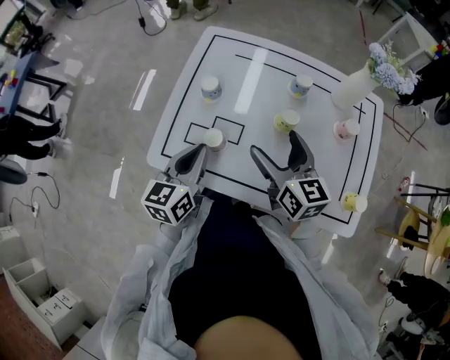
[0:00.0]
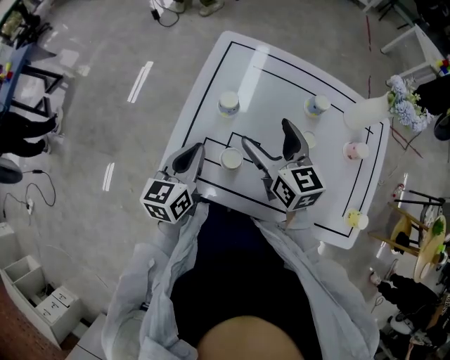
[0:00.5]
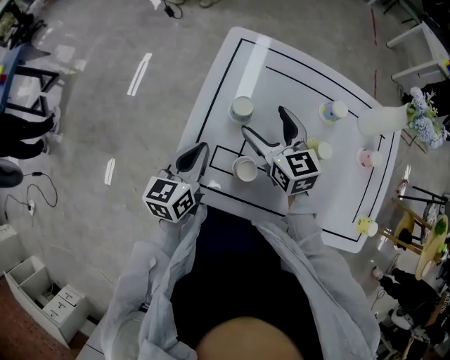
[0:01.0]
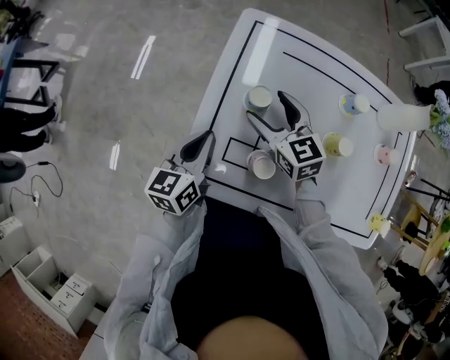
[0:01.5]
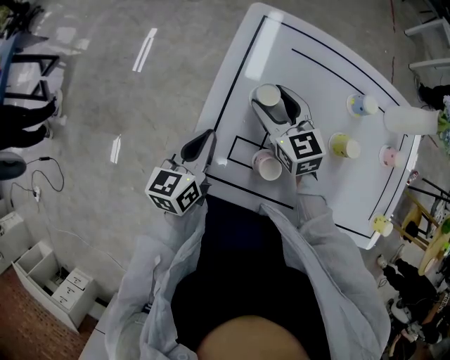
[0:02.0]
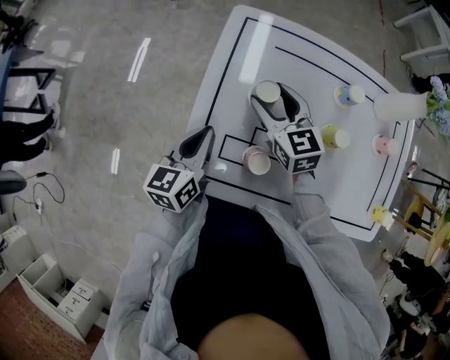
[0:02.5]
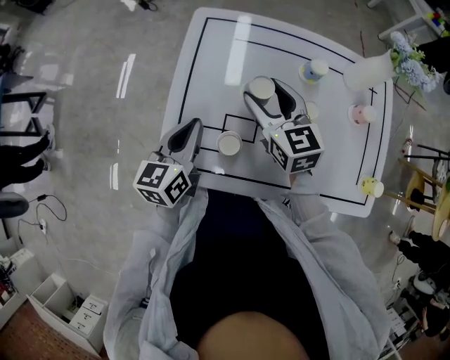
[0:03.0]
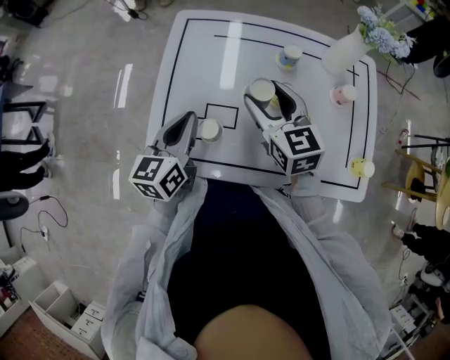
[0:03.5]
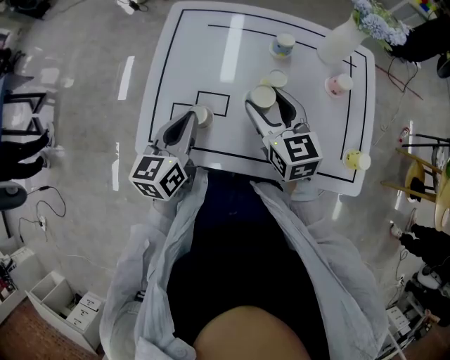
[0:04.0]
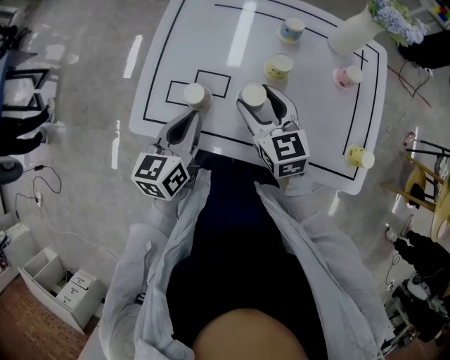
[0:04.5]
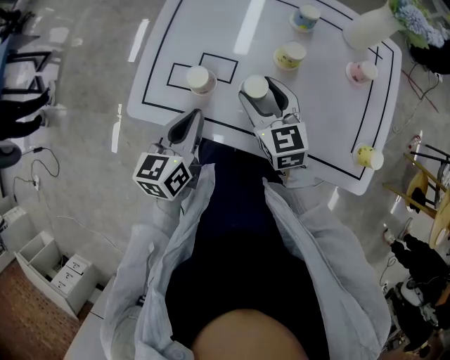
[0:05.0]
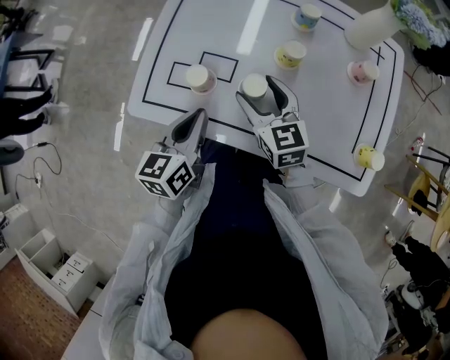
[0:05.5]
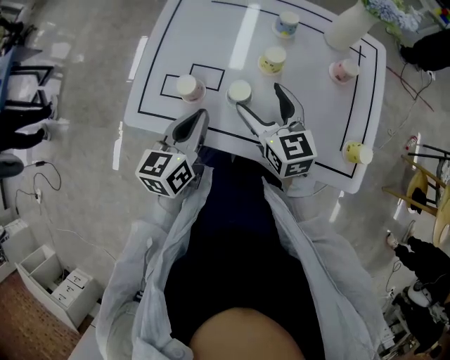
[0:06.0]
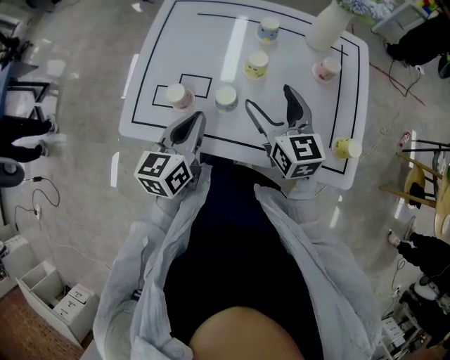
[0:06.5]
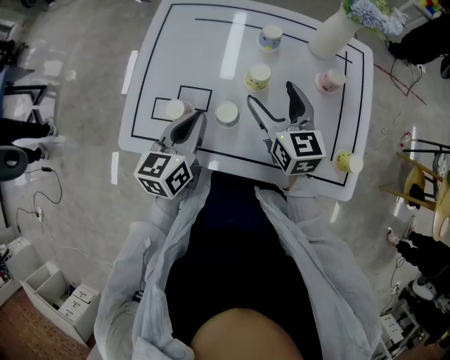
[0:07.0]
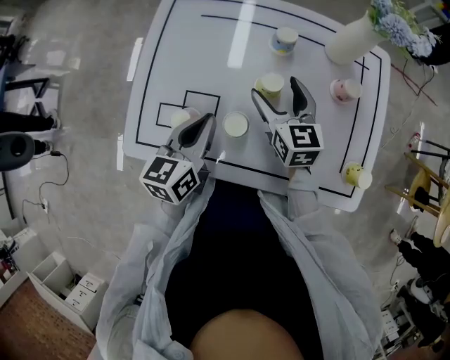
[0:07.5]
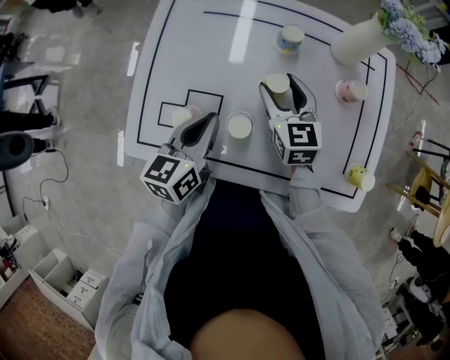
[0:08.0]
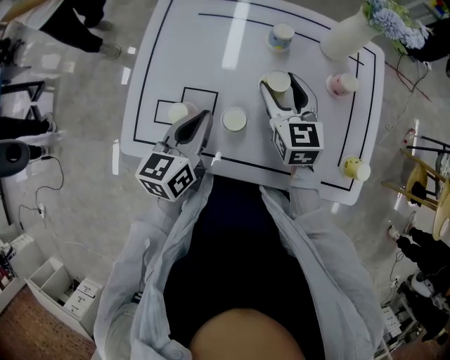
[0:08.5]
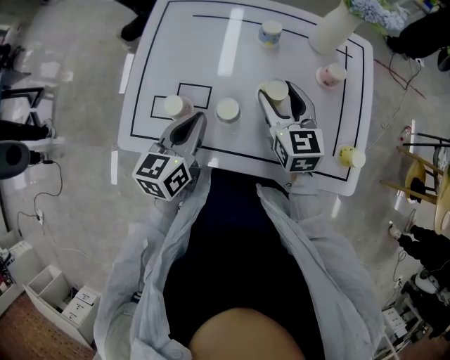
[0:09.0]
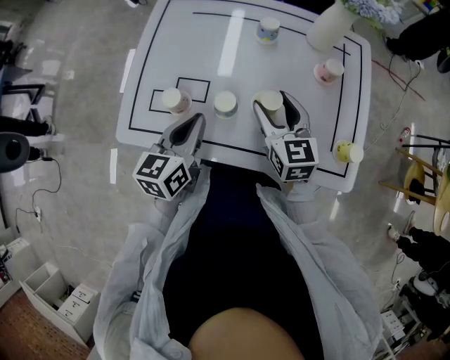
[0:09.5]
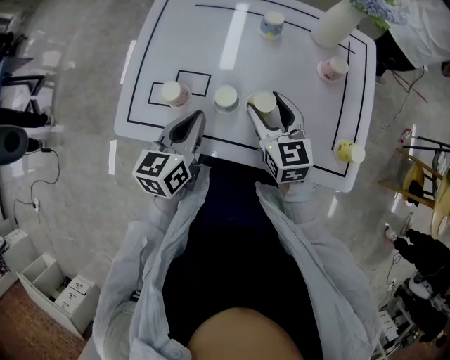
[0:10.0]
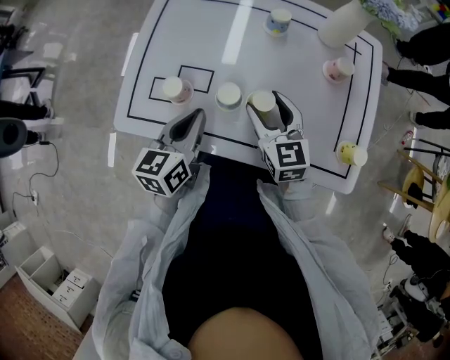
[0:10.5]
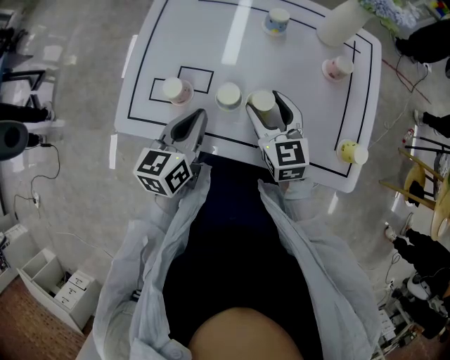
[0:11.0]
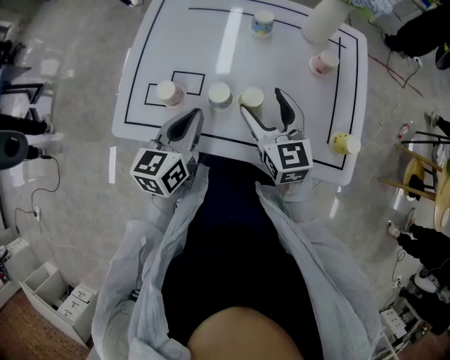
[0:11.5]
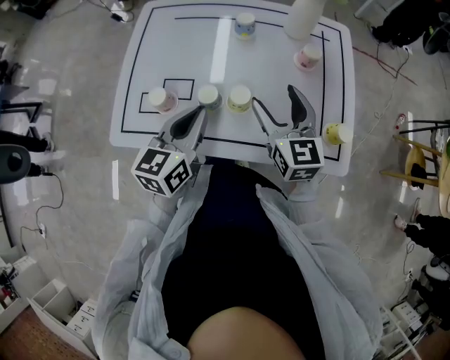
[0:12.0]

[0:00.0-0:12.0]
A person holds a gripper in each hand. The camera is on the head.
0:00.0 to 0:02.0: The right gripper goes some 30 cm forward, to the left and downward, swivels some 20 degrees, and closes up. Meanwhile the left gripper travels to the left, forward and downward by roughly 20 cm.
0:02.0 to 0:04.0: The left gripper shifts some 20 cm to the right, upward and backward. The right gripper heads to the right, backward and upward, covering approximately 25 cm.
0:04.0 to 0:06.0: Both grippers travel together backward, roughly 5 cm.
0:06.0 to 0:08.0: The two grippers go about 10 cm forward.
0:08.0 to 0:10.0: The left gripper is displaced backward by roughly 5 cm. Meanwhile the right gripper heads backward, covering approximately 10 cm.
0:10.0 to 0:12.0: The right gripper shifts roughly 10 cm to the right and upward, while the left gripper moves approximately 5 cm.

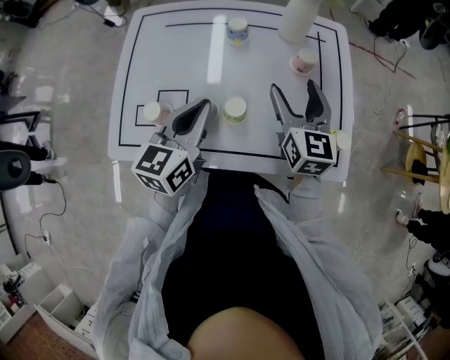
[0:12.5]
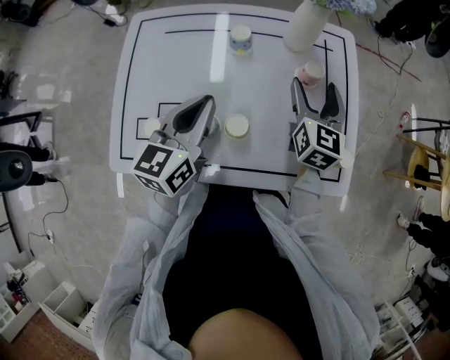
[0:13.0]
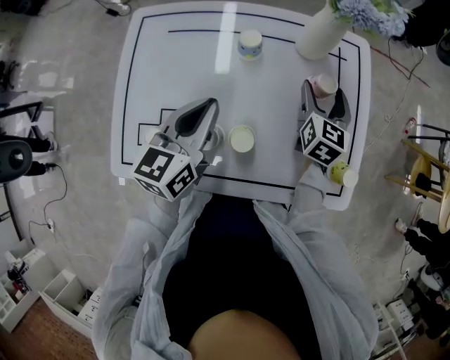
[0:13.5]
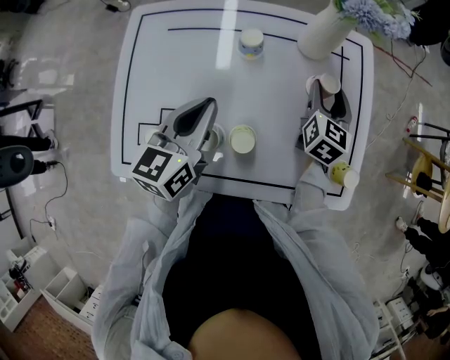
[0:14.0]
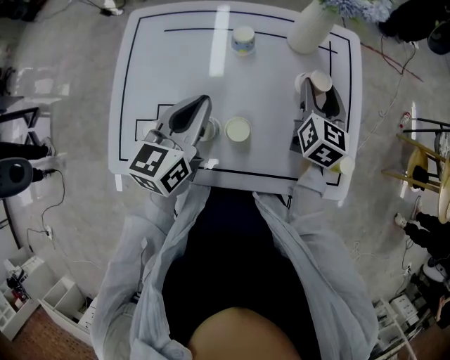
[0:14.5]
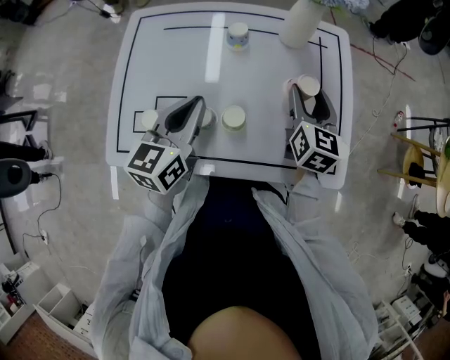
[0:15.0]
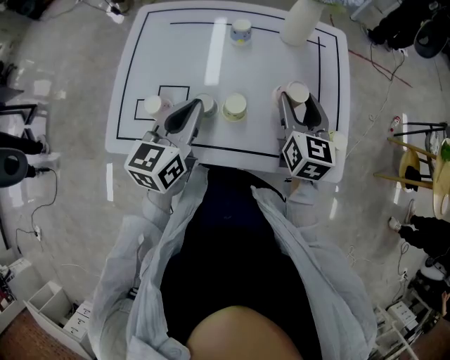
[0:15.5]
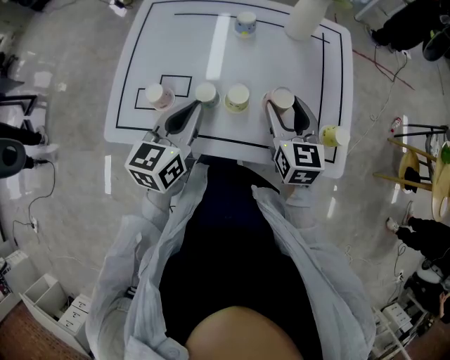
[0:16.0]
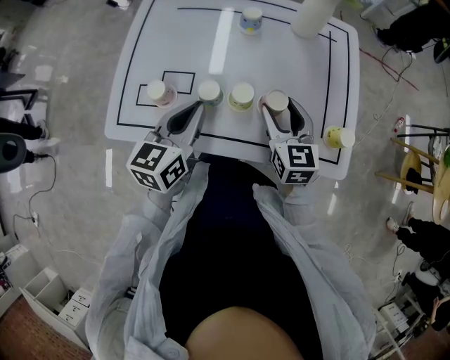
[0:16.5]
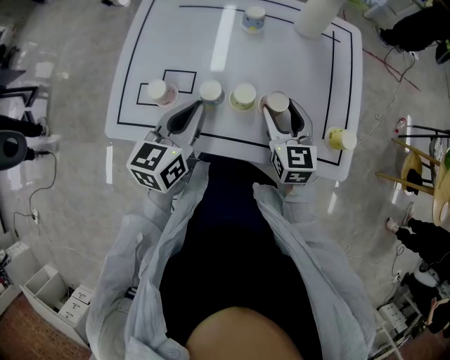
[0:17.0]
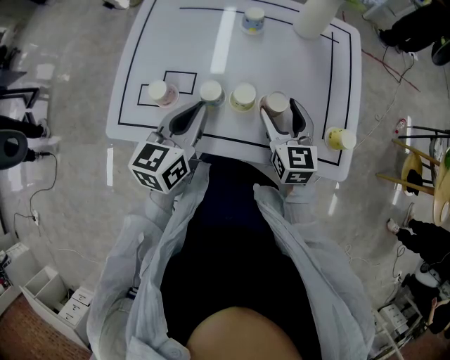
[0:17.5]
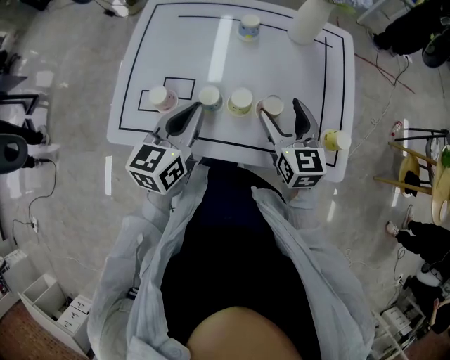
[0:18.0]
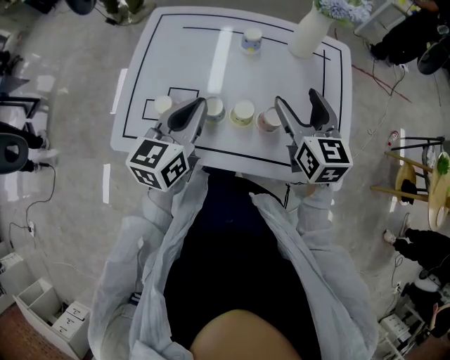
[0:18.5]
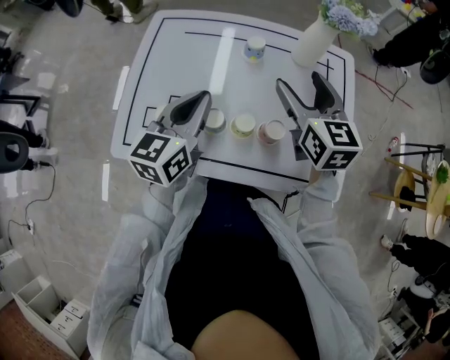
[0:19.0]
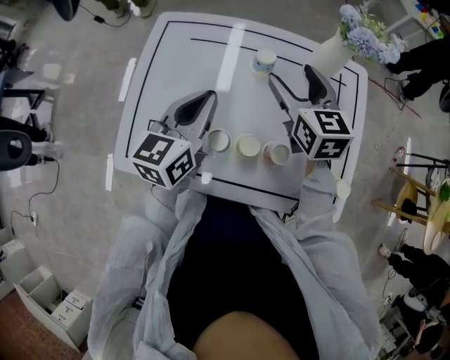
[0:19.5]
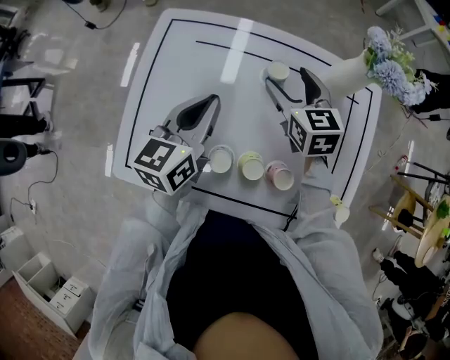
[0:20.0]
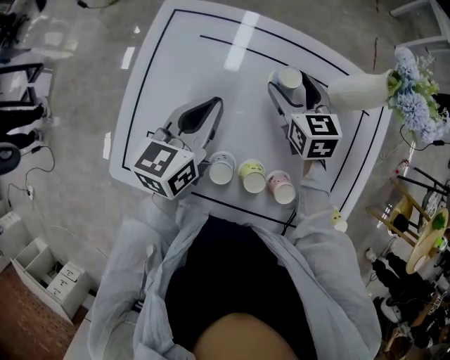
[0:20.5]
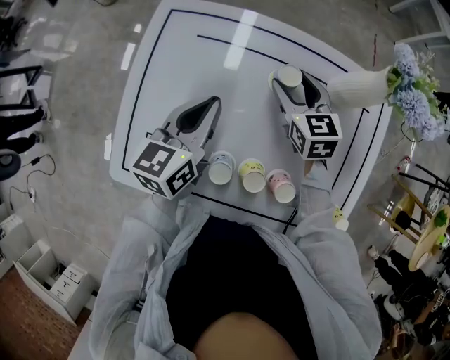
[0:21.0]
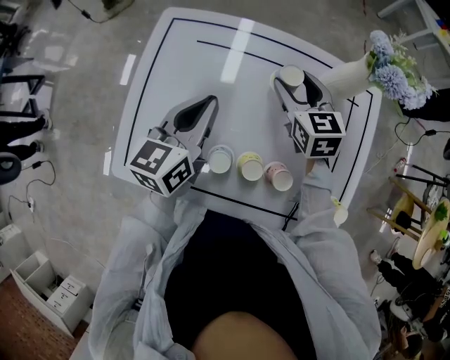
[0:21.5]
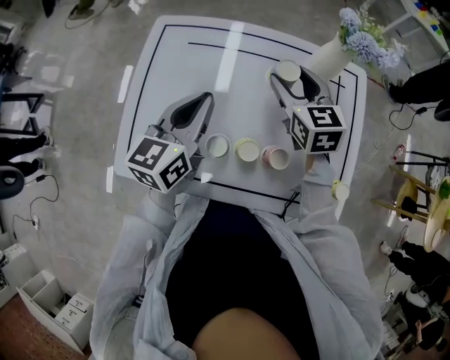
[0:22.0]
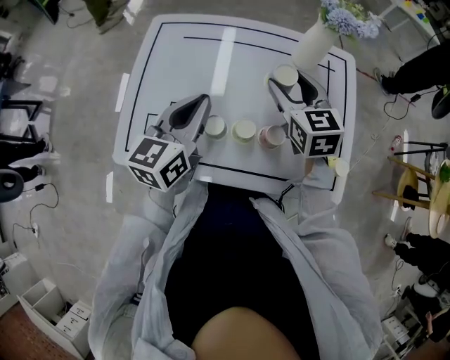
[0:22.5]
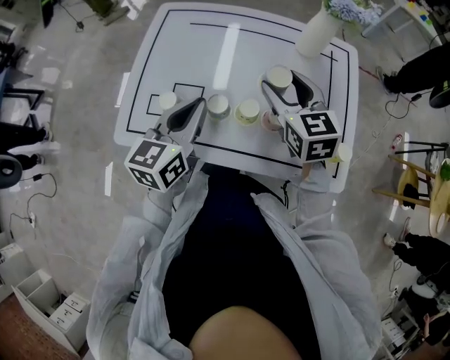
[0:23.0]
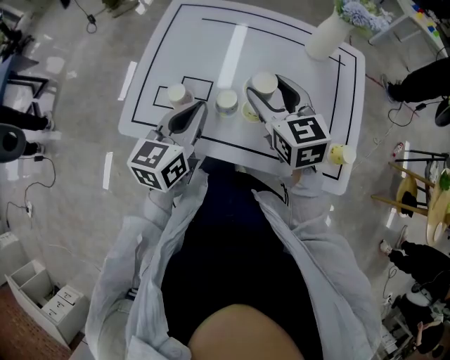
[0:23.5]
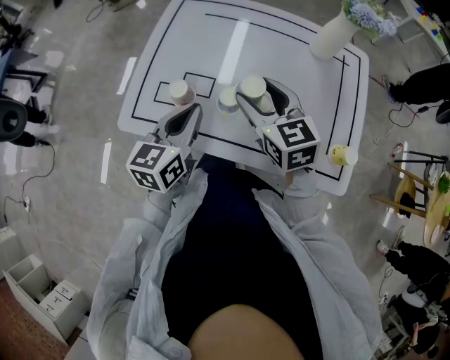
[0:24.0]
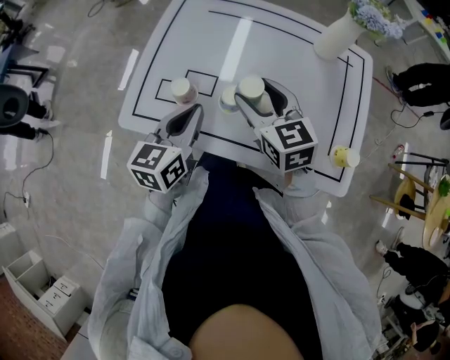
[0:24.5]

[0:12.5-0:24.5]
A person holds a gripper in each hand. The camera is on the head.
0:12.5 to 0:14.5: The right gripper moves forward, some 10 cm. The left gripper moves forward, some 5 cm.
0:14.5 to 0:16.5: The left gripper travels backward by approximately 10 cm; the right gripper shifts some 20 cm backward and to the left, and rotates roughly 30 degrees.
0:16.5 to 0:18.5: The right gripper moves upward, roughly 10 cm, while the left gripper goes roughly 5 cm upward.
0:18.5 to 0:20.5: The left gripper goes about 20 cm forward; the right gripper travels forward, downward and to the left by some 30 cm.
0:20.5 to 0:22.5: The two grippers go roughly 15 cm backward and upward.
0:22.5 to 0:24.5: The right gripper is displaced to the left and backward by about 15 cm. Meanwhile the left gripper travels backward, downward and to the left by approximately 10 cm.

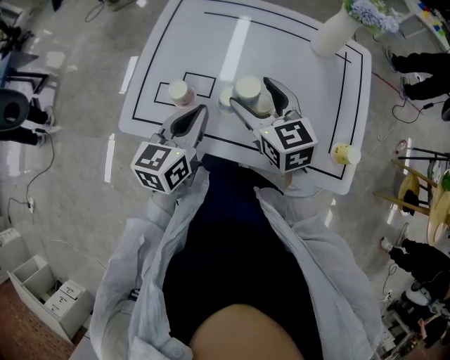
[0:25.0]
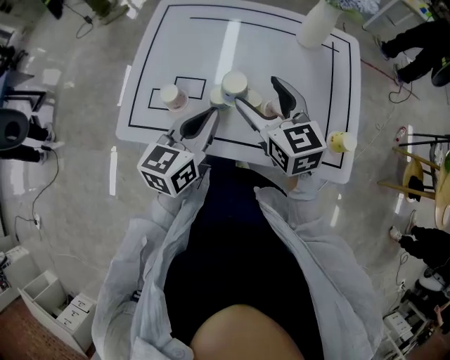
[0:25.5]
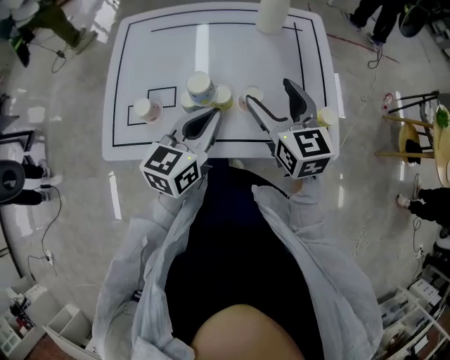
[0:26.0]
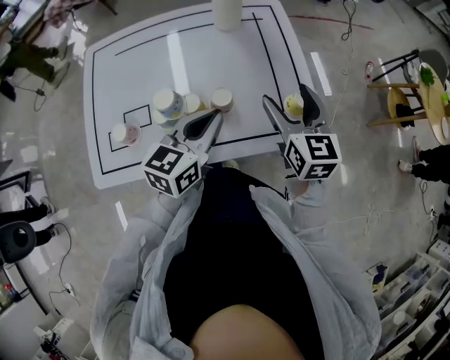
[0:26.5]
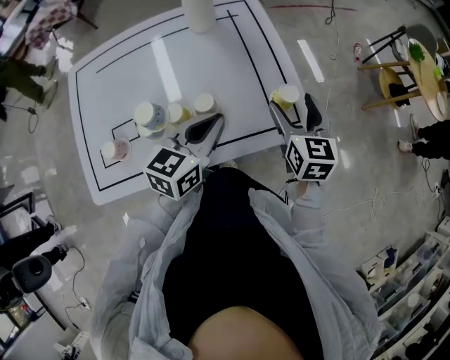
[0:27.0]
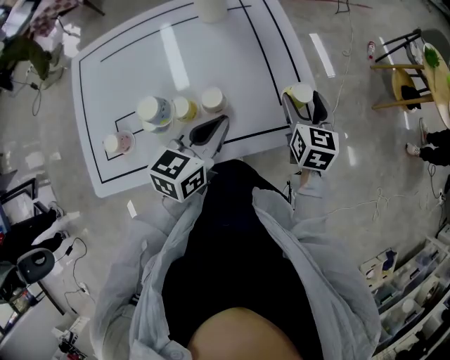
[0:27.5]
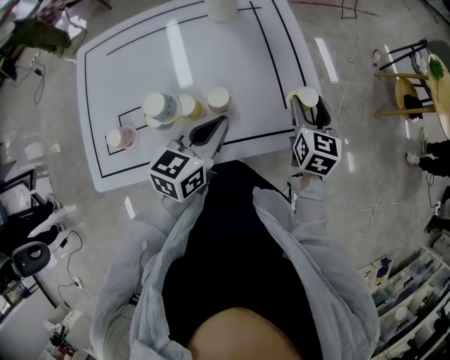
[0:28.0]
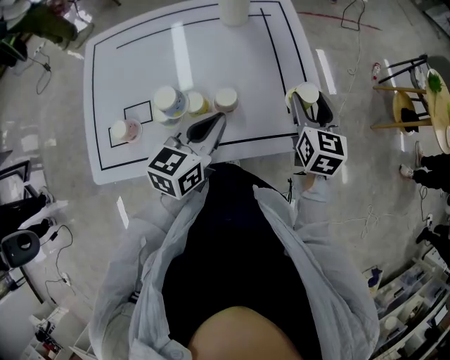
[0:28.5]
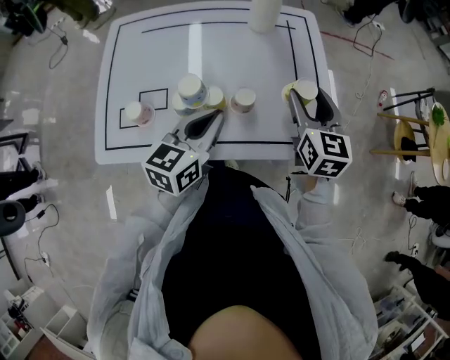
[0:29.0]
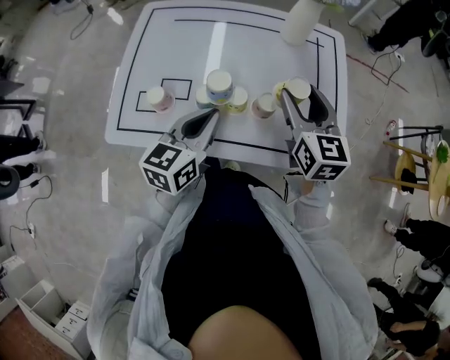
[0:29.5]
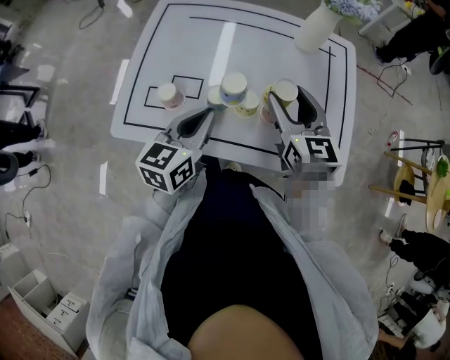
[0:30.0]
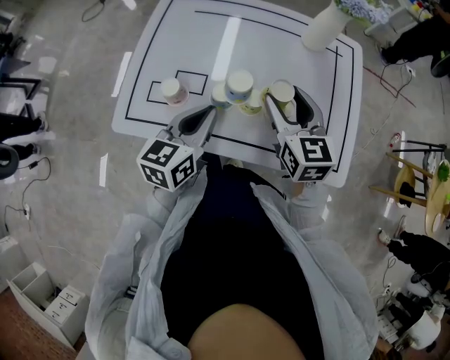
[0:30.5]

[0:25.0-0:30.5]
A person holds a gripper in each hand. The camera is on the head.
0:25.0 to 0:27.0: The right gripper shifts by some 35 cm, and changes its angle by roughly 50 degrees, while the left gripper changes place by roughly 25 cm, and turns by approximately 40 degrees.
0:28.5 to 0:30.5: The left gripper changes place by approximately 15 cm, and rotates some 20 degrees; the right gripper changes place by some 25 cm, and changes its angle by roughly 40 degrees.
